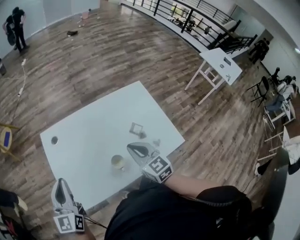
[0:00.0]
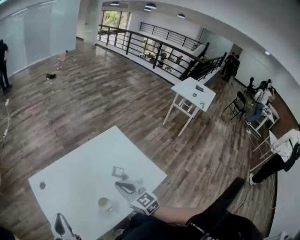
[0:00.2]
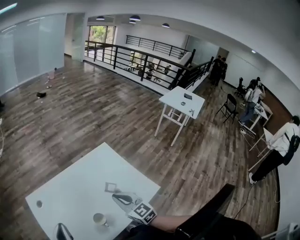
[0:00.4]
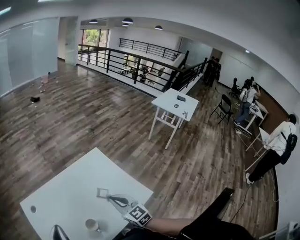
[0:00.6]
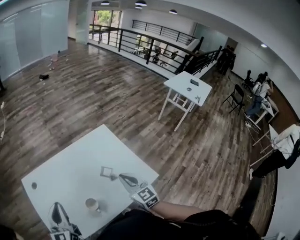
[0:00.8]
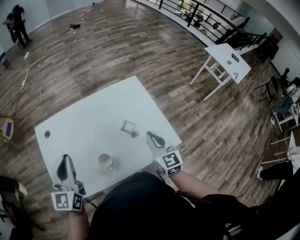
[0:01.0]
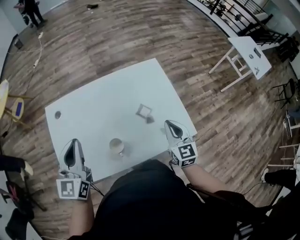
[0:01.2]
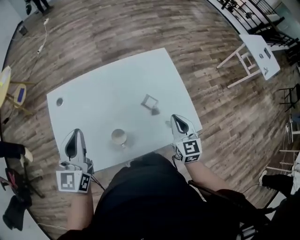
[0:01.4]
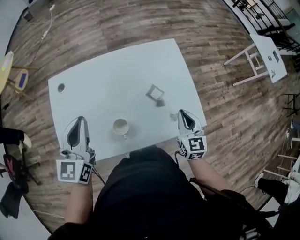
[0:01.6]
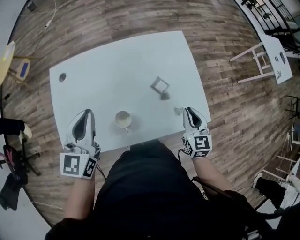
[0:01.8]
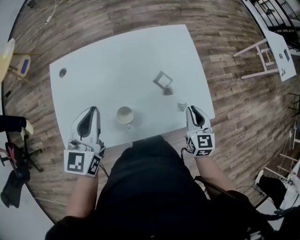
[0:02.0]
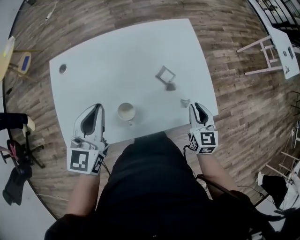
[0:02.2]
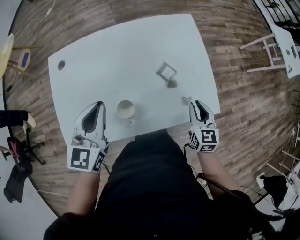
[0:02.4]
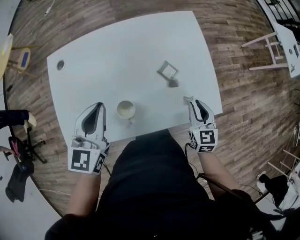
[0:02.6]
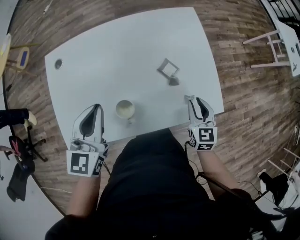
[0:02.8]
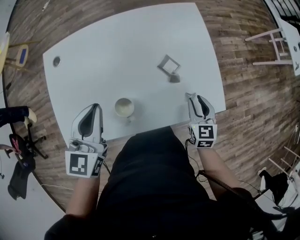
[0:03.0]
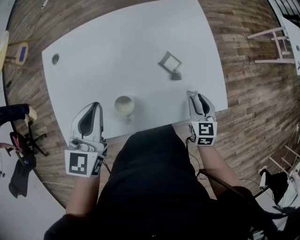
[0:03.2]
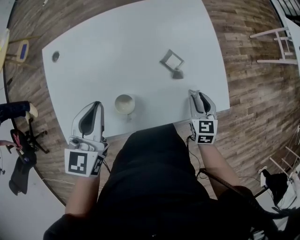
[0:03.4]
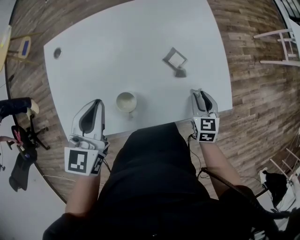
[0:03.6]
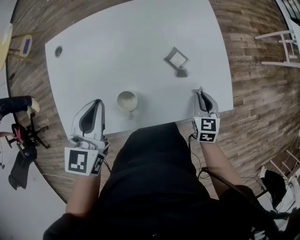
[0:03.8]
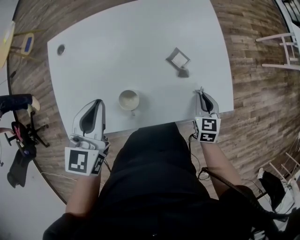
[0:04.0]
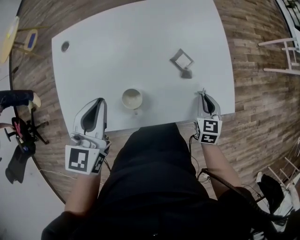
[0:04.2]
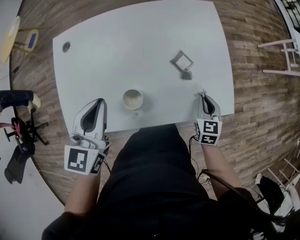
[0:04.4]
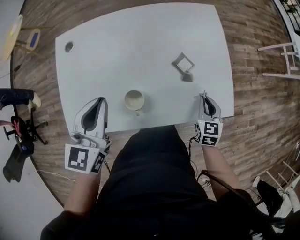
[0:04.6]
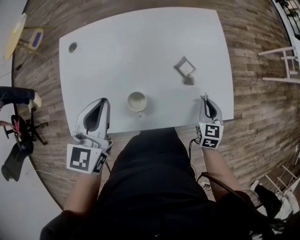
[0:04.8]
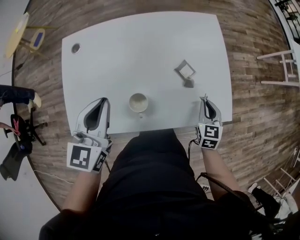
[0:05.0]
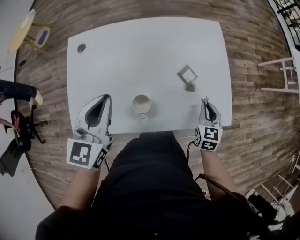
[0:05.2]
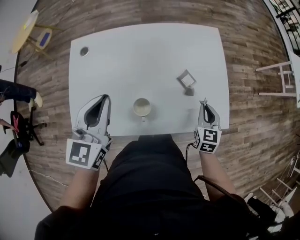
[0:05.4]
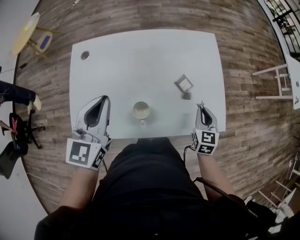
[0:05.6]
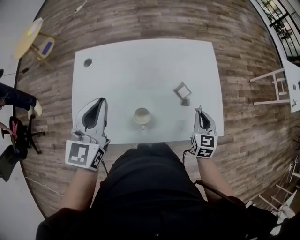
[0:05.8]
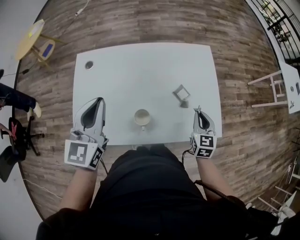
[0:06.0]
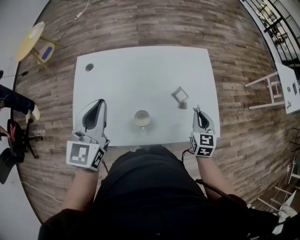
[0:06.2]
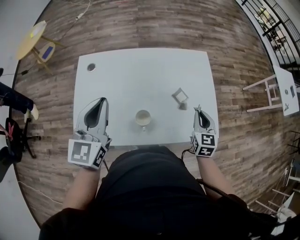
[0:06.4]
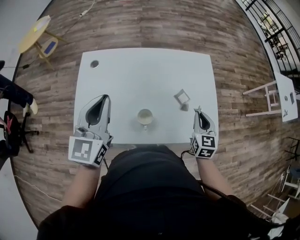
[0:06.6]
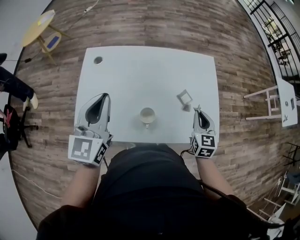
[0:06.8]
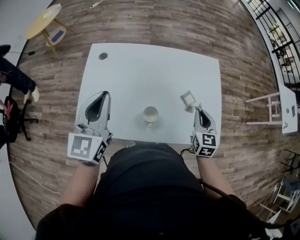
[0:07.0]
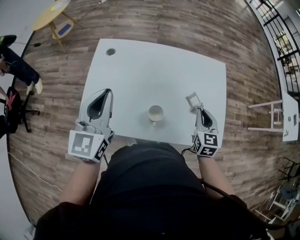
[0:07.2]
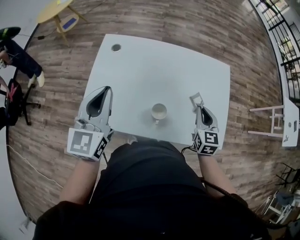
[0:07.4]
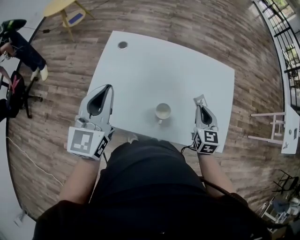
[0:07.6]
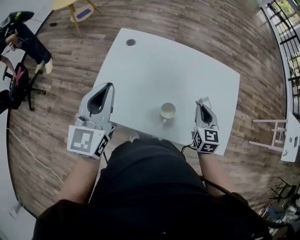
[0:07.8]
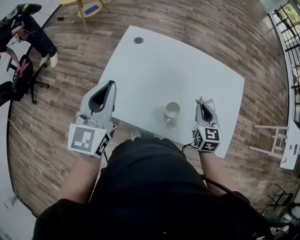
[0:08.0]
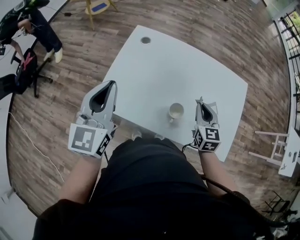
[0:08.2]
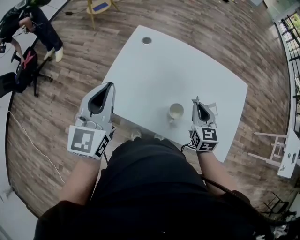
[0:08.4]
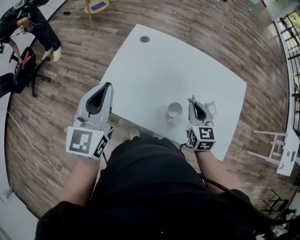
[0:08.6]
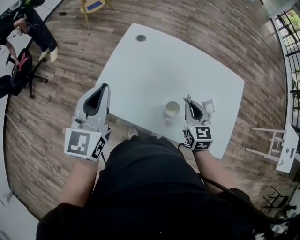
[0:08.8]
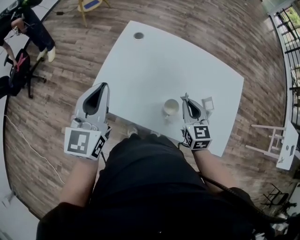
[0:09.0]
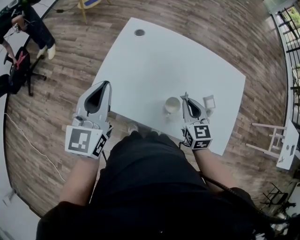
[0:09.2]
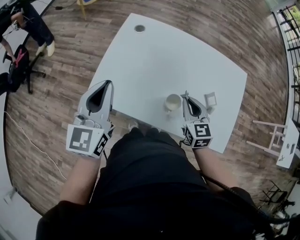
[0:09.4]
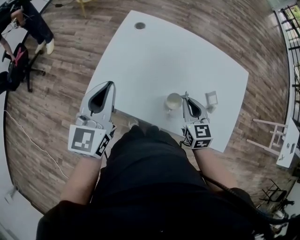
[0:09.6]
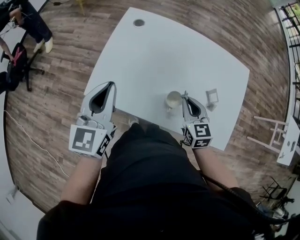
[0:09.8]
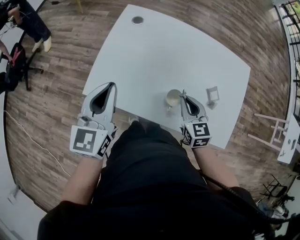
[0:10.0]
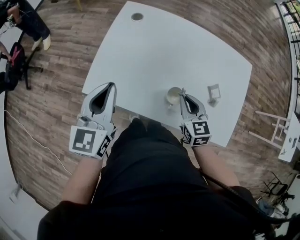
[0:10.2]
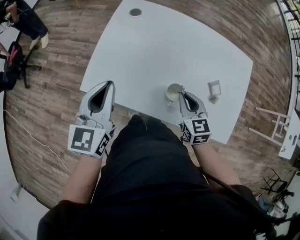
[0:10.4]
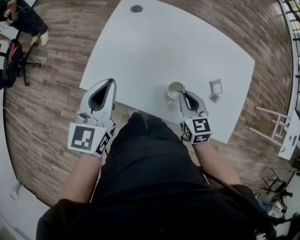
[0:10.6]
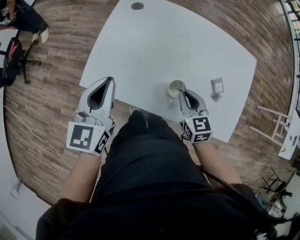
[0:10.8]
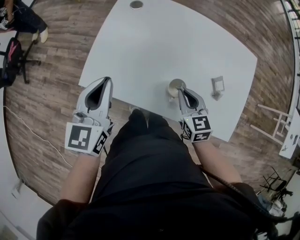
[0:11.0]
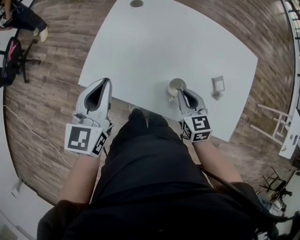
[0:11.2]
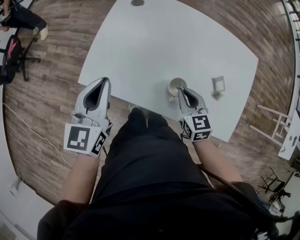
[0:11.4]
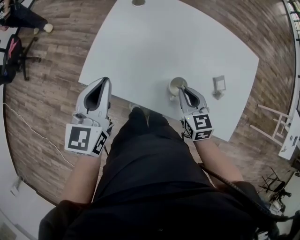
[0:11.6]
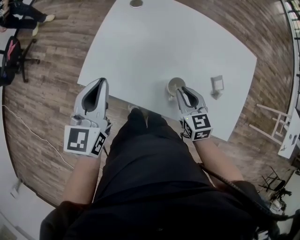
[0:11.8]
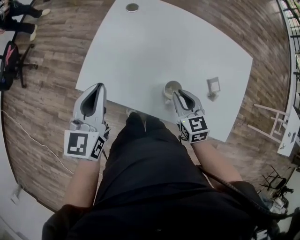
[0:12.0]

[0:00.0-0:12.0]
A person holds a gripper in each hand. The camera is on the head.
0:00.0 to 0:01.6: The left gripper goes some 15 cm to the right; the right gripper goes about 20 cm to the right and downward.
0:01.6 to 0:03.0: The left gripper heads downward, covering about 5 cm. Meanwhile the right gripper shifts about 10 cm downward, and opens.
0:03.0 to 0:04.4: The right gripper closes.
0:04.4 to 0:06.0: Both grippers move upward, roughly 5 cm.
0:06.0 to 0:07.6: The two grippers go about 10 cm to the left.
0:07.6 to 0:09.0: The right gripper shifts about 10 cm to the left; the left gripper goes about 5 cm to the left.
0:09.0 to 0:10.4: The left gripper is displaced downward by approximately 5 cm; the right gripper ends up about 5 cm from where it was.
0:10.4 to 0:12.0: The grippers move only a little.

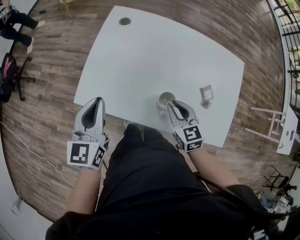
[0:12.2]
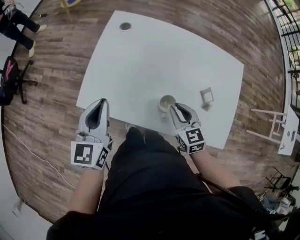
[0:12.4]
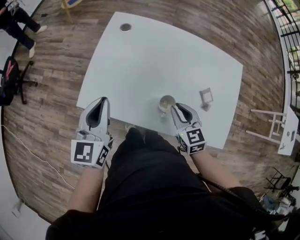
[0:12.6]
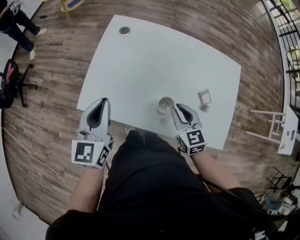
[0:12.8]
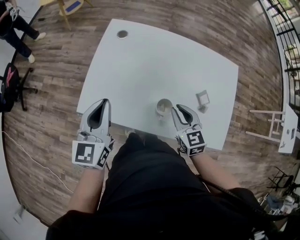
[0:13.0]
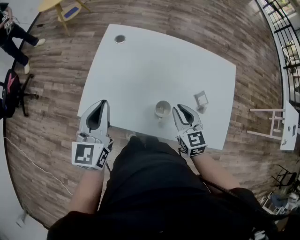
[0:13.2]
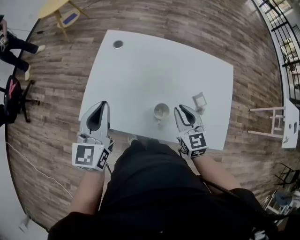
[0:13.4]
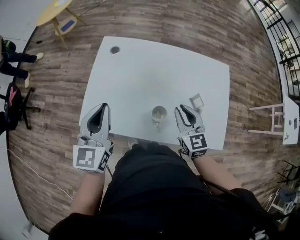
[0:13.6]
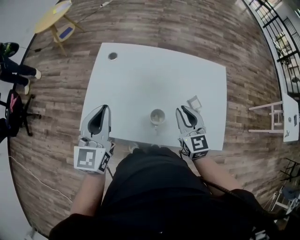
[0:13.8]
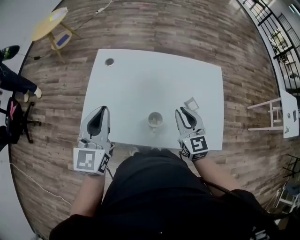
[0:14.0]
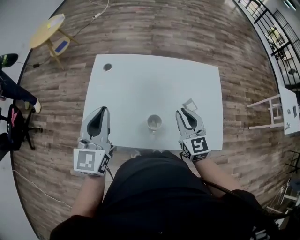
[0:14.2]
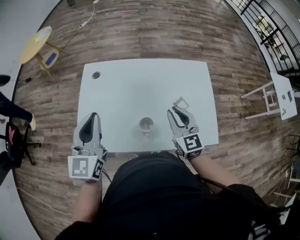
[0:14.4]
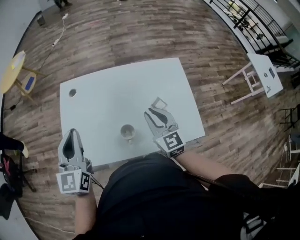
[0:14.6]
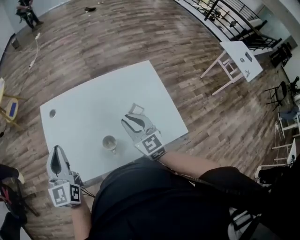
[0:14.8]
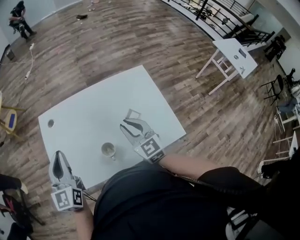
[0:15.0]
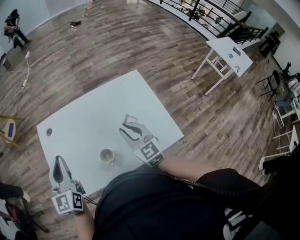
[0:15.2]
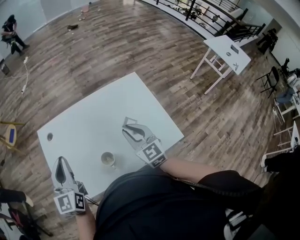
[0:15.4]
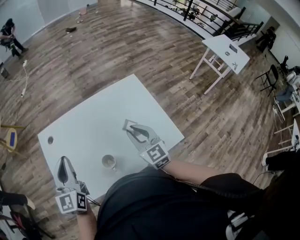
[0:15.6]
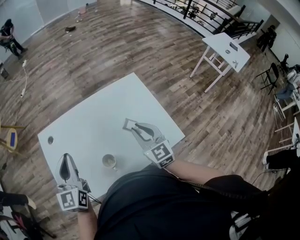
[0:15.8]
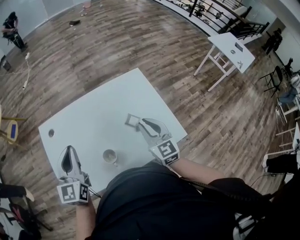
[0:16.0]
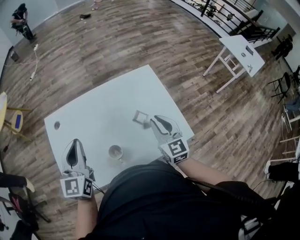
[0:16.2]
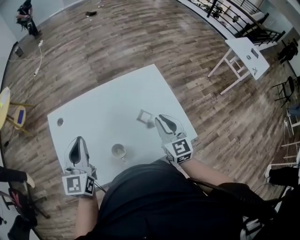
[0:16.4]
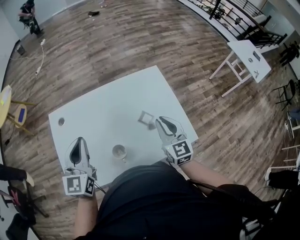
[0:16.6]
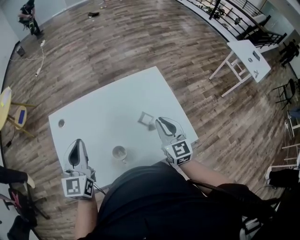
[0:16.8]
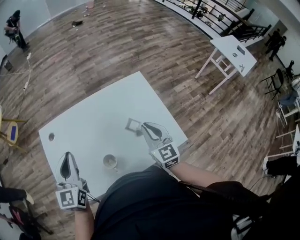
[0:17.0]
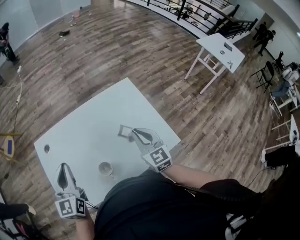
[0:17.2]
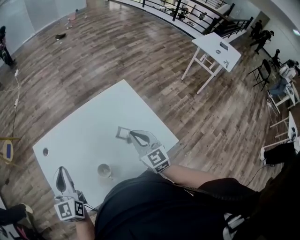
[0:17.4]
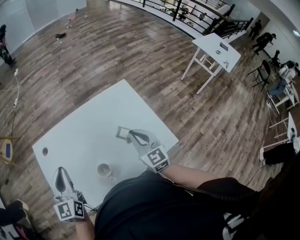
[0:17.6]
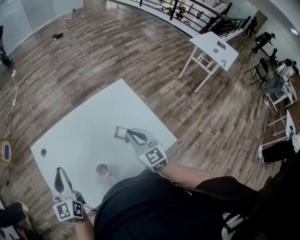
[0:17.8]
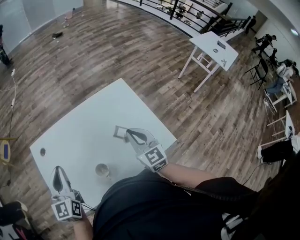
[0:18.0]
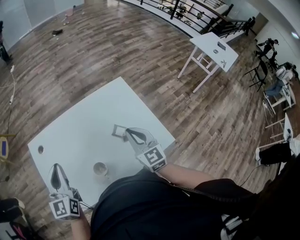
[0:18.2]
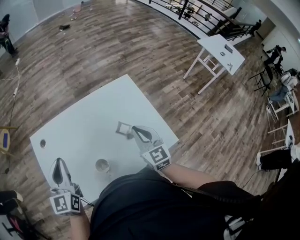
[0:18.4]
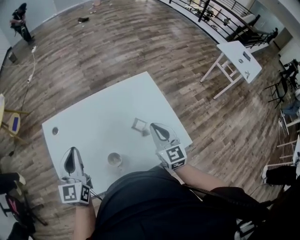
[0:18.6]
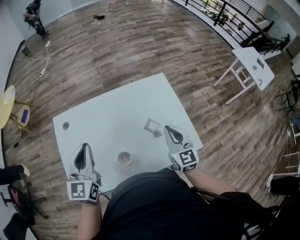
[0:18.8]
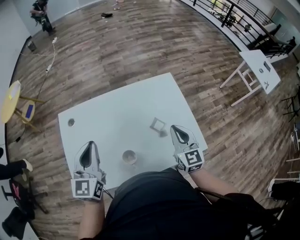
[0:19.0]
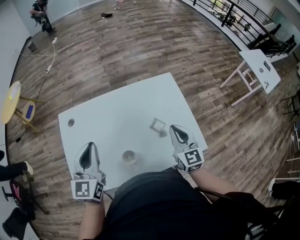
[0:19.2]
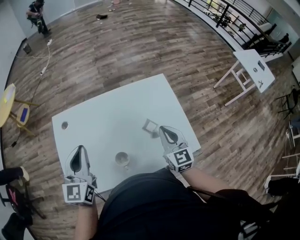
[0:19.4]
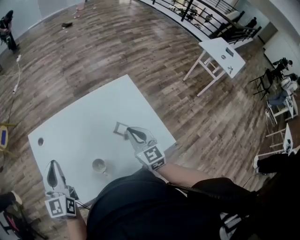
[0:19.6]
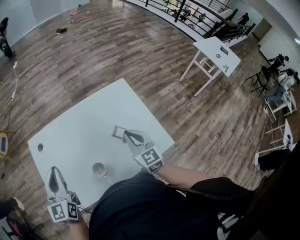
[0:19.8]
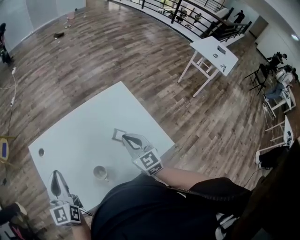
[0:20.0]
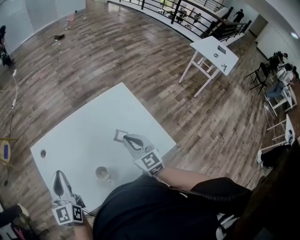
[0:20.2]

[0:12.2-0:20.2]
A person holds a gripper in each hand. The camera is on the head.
0:12.2 to 0:13.8: The left gripper is displaced upward by roughly 5 cm; the right gripper shifts about 10 cm upward and to the right, and swivels approximately 20 degrees.
0:13.8 to 0:15.4: The right gripper travels to the right by approximately 5 cm. Meanwhile the left gripper shifts roughly 5 cm forward.
0:15.4 to 0:17.0: The right gripper heads to the right, covering approximately 5 cm.
0:17.0 to 0:20.2: The grippers move only a little.

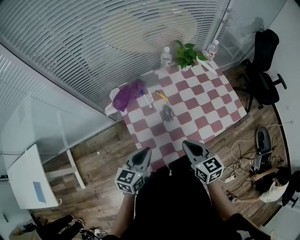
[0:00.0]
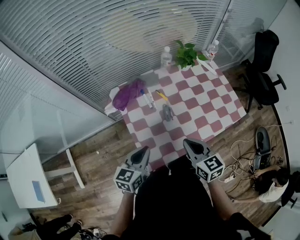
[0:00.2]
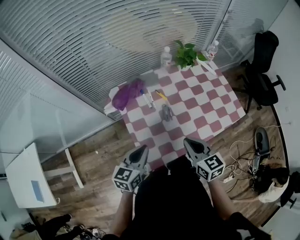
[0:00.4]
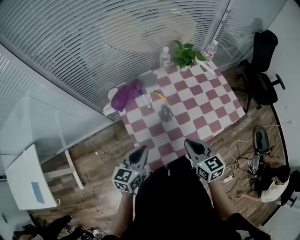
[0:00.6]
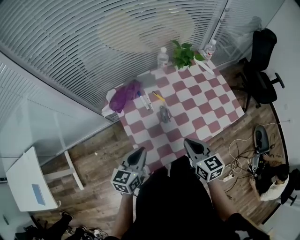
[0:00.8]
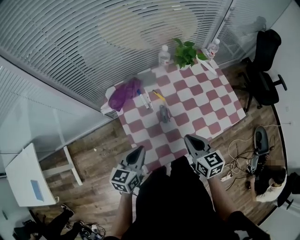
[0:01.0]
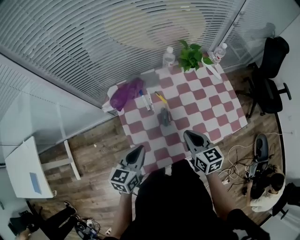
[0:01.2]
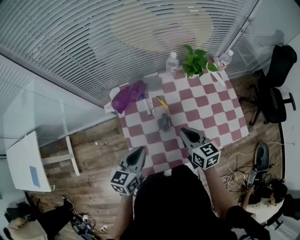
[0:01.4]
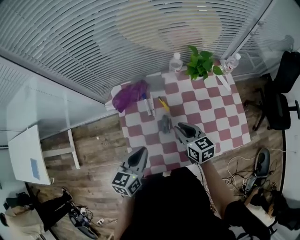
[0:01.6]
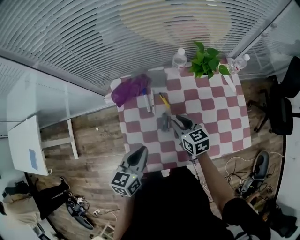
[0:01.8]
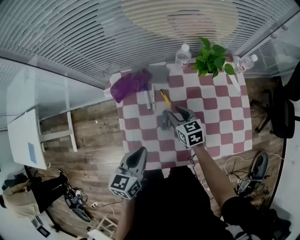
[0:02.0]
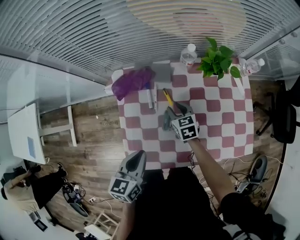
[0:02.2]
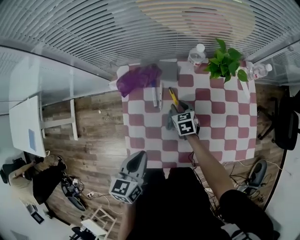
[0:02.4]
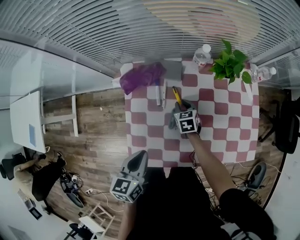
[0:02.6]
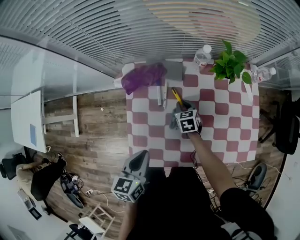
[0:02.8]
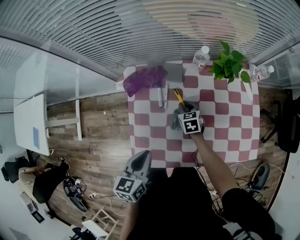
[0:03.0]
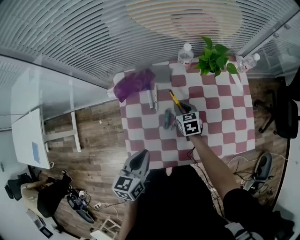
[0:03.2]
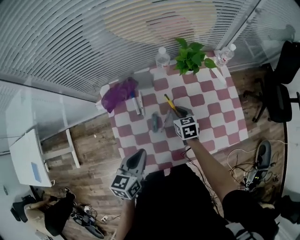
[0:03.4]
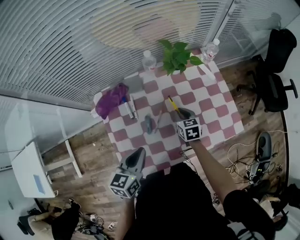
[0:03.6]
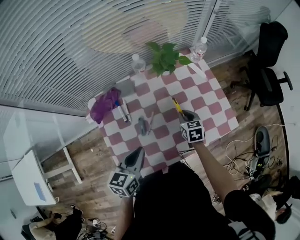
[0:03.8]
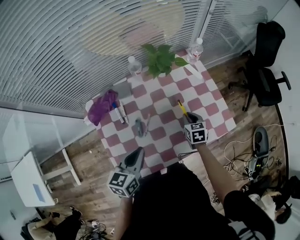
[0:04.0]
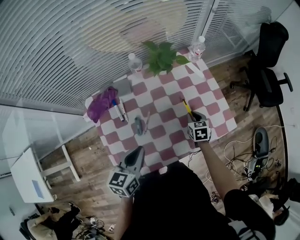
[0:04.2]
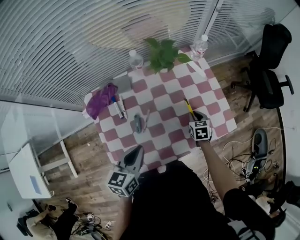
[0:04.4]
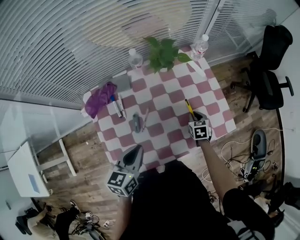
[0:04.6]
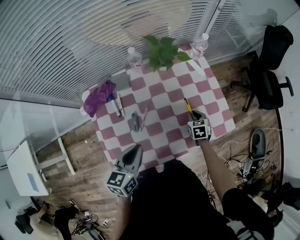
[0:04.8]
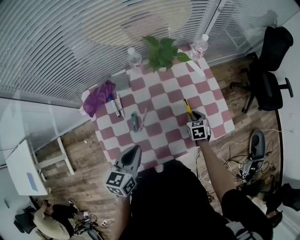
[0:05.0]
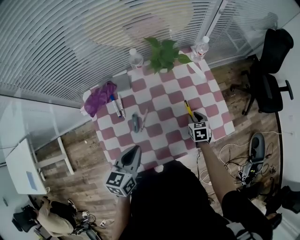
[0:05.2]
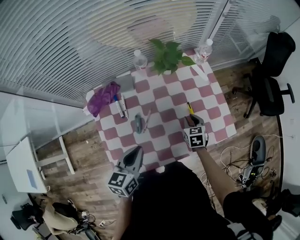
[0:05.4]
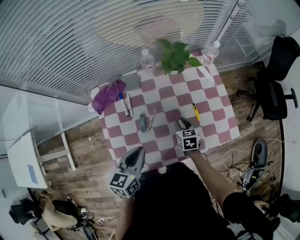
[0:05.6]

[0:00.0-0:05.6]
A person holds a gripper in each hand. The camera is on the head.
0:00.0 to 0:01.4: The left gripper goes roughly 5 cm forward; the right gripper travels forward by about 15 cm.
0:01.4 to 0:02.8: The left gripper changes its angle by approximately 20 degrees. Meanwhile the right gripper goes some 25 cm downward and forward, swivels approximately 30 degrees, and opens and closes again.
0:02.8 to 0:04.2: The left gripper moves some 15 cm, and turns by about 30 degrees. The right gripper changes place by approximately 30 cm, and changes its angle by some 30 degrees.
0:04.2 to 0:05.6: The right gripper shifts approximately 10 cm to the left.
